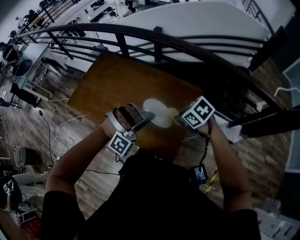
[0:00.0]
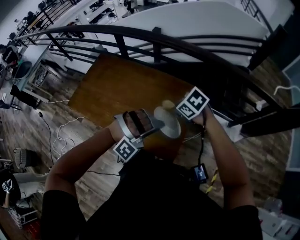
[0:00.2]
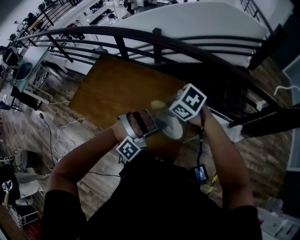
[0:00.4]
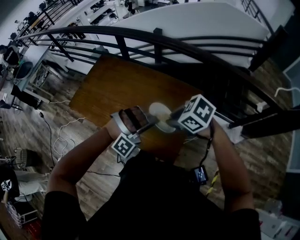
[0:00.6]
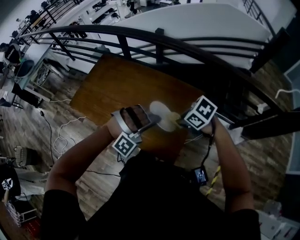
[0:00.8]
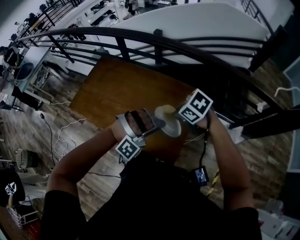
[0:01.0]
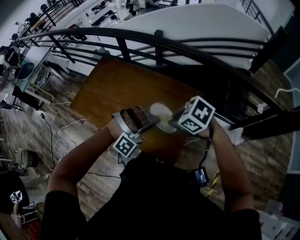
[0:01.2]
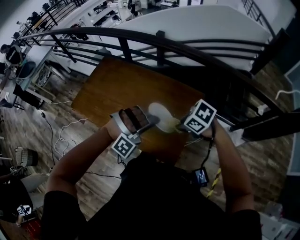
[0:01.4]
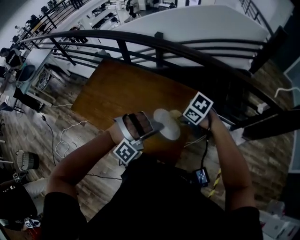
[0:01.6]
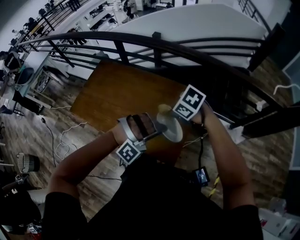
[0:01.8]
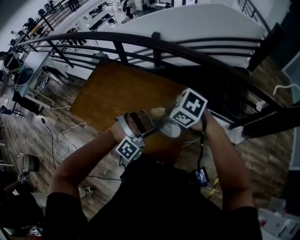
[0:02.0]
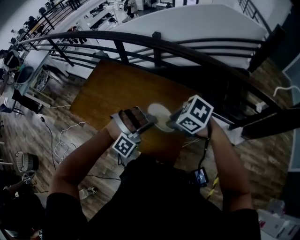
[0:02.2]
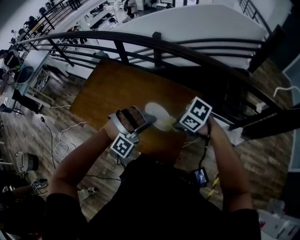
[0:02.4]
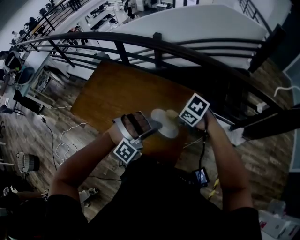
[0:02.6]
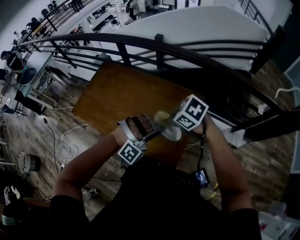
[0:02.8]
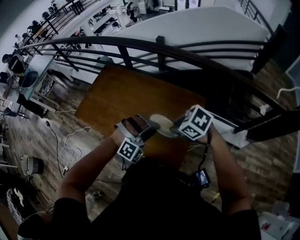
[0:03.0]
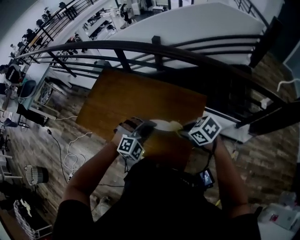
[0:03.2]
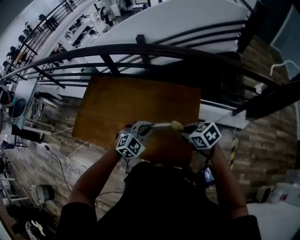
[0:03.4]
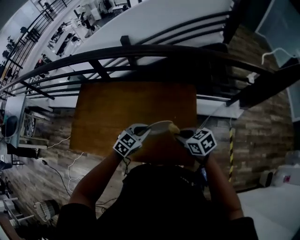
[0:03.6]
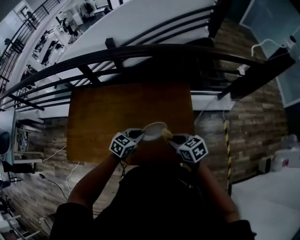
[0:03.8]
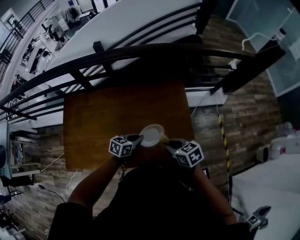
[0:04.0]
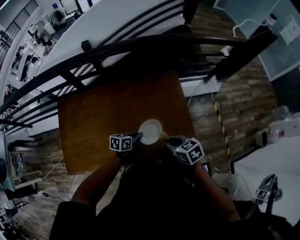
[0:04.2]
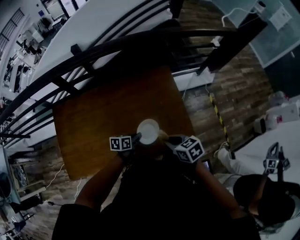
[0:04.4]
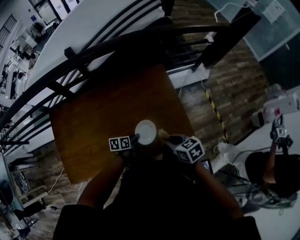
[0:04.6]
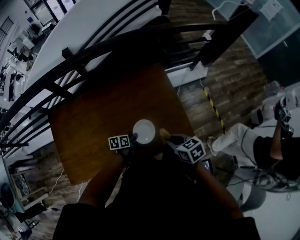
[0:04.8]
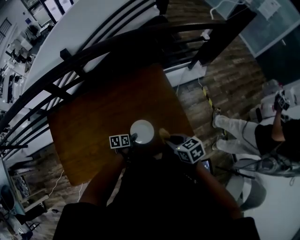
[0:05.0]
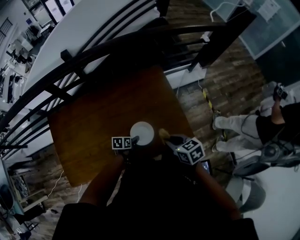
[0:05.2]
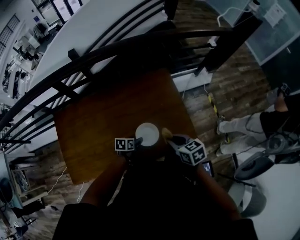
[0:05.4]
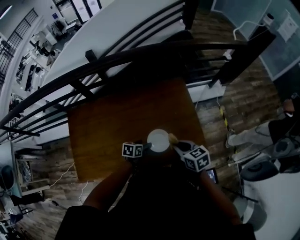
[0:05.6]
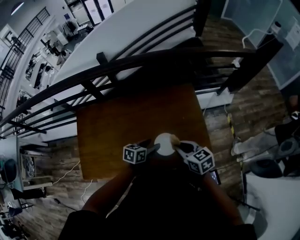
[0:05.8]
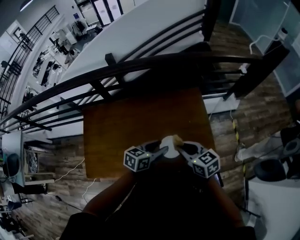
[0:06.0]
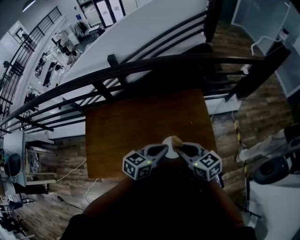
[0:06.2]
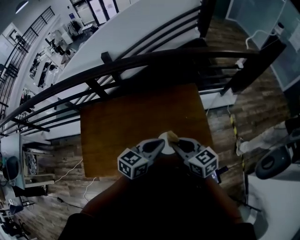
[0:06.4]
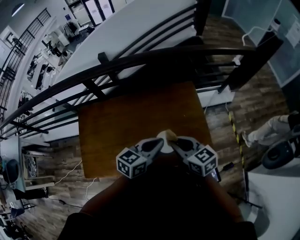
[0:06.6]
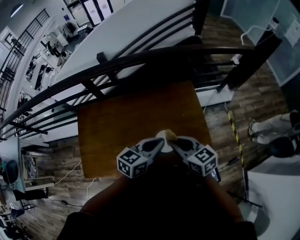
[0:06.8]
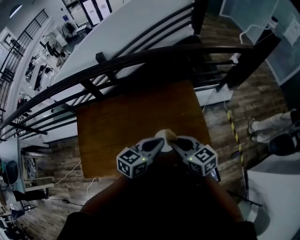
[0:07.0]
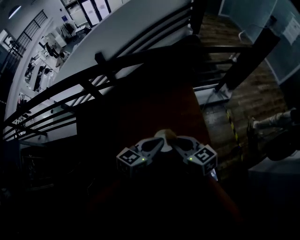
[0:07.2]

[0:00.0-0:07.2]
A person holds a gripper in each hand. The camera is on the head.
0:00.0 to 0:01.4: The right gripper moves up and down over roughly 5 cm, changing direction 3 times.
0:01.4 to 0:02.8: The right gripper goes up and down, approximately 10 cm each way, reversing 2 times.
0:02.8 to 0:04.4: The left gripper shifts some 25 cm downward, and rolls counterclockwise, seen from behind, by some 120 degrees. The right gripper shifts by approximately 15 cm, and rotates around the line of its fingers by some 60 degrees, clockwise from behind.
0:04.4 to 0:05.8: The left gripper goes some 10 cm upward, and opens its fingers. Meanwhile the right gripper travels to the left and upward by approximately 10 cm.
0:05.8 to 0:07.2: The left gripper is displaced upward by roughly 20 cm, changes its angle by some 20 degrees, and closes its fingers. Meanwhile the right gripper is displaced upward by some 10 cm.

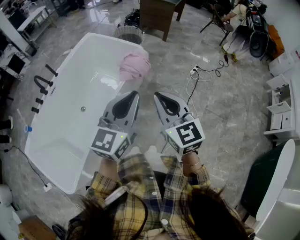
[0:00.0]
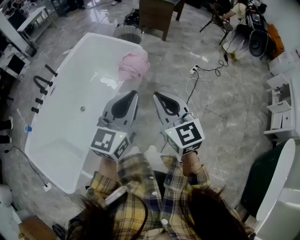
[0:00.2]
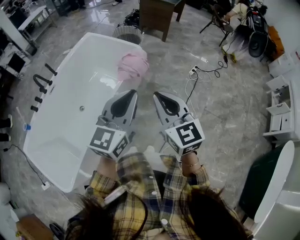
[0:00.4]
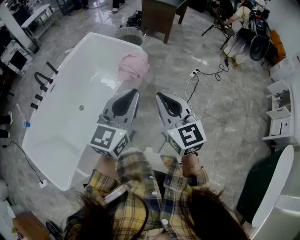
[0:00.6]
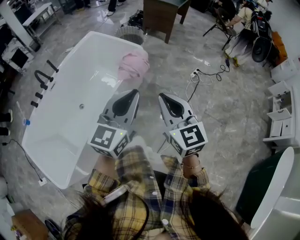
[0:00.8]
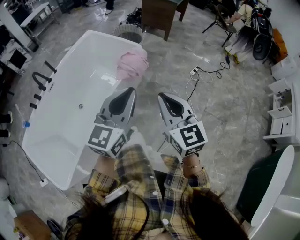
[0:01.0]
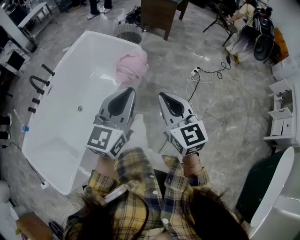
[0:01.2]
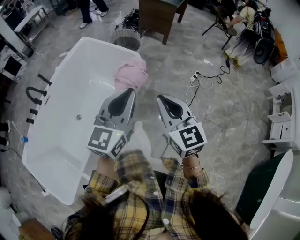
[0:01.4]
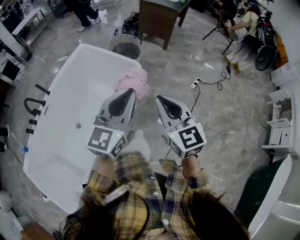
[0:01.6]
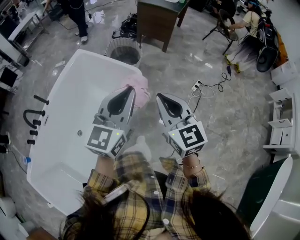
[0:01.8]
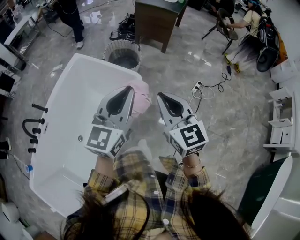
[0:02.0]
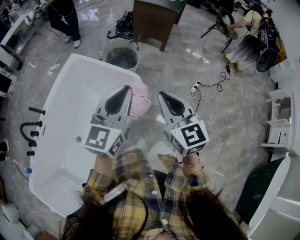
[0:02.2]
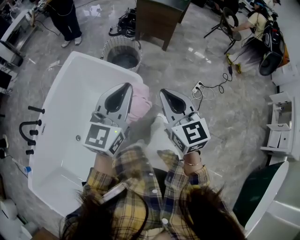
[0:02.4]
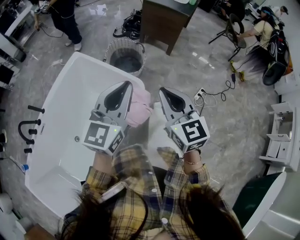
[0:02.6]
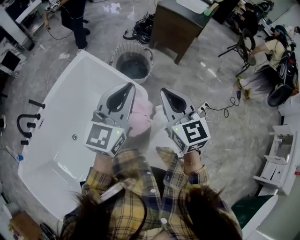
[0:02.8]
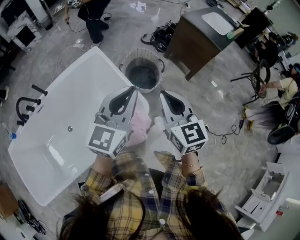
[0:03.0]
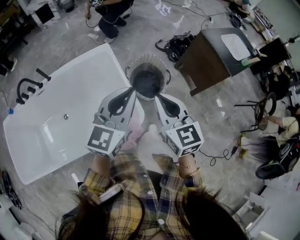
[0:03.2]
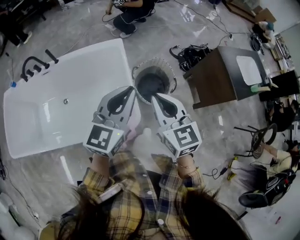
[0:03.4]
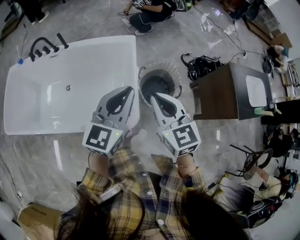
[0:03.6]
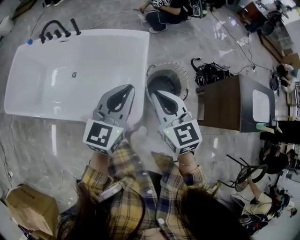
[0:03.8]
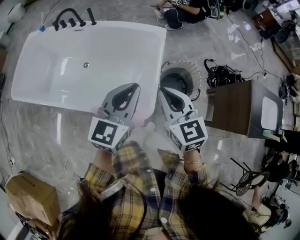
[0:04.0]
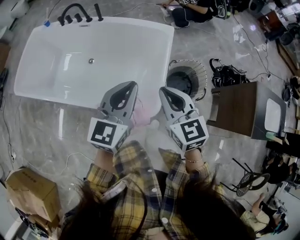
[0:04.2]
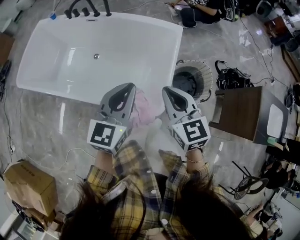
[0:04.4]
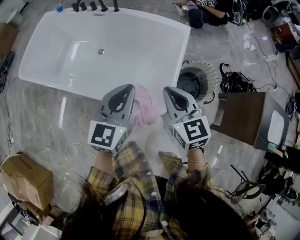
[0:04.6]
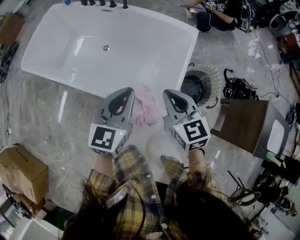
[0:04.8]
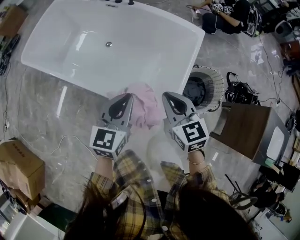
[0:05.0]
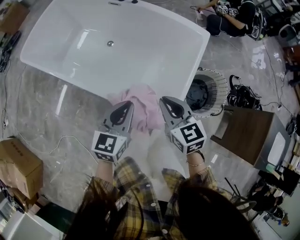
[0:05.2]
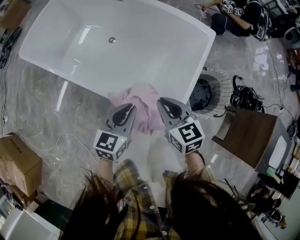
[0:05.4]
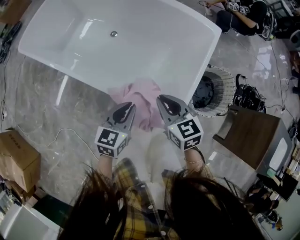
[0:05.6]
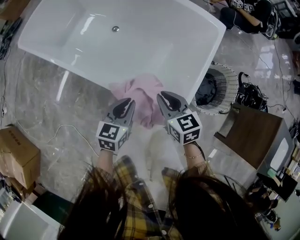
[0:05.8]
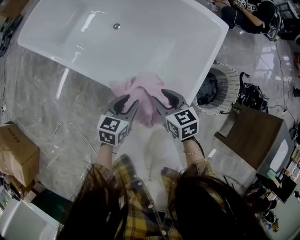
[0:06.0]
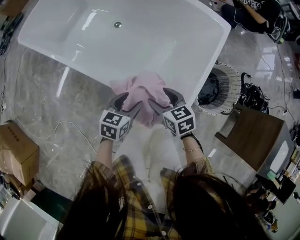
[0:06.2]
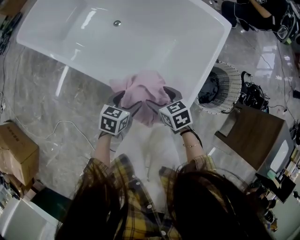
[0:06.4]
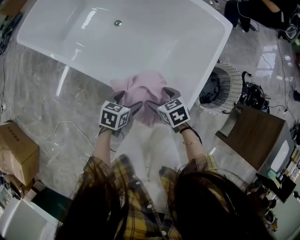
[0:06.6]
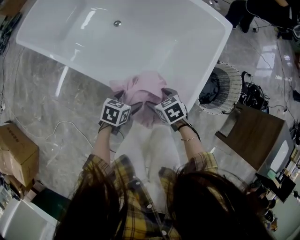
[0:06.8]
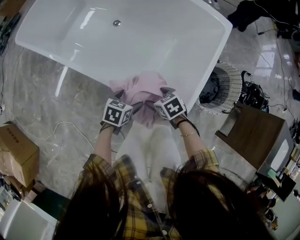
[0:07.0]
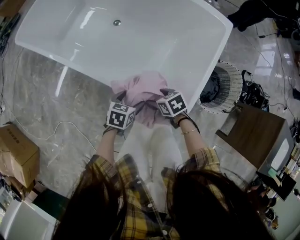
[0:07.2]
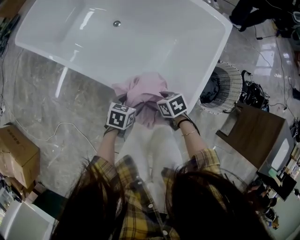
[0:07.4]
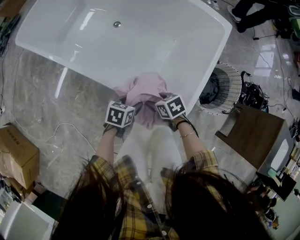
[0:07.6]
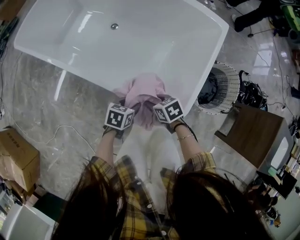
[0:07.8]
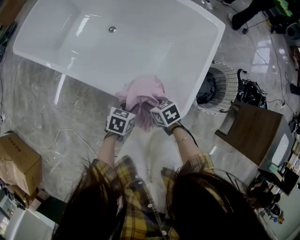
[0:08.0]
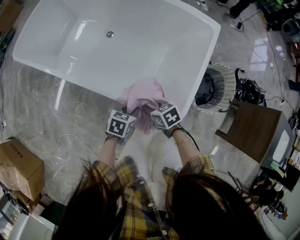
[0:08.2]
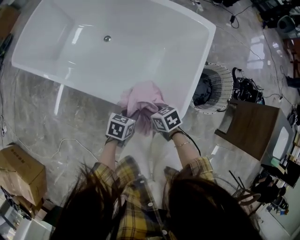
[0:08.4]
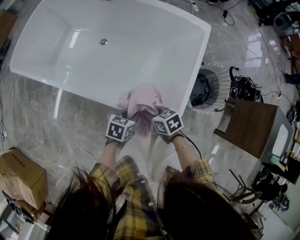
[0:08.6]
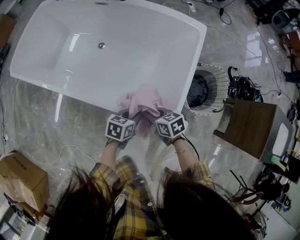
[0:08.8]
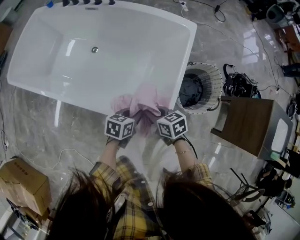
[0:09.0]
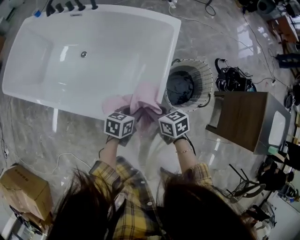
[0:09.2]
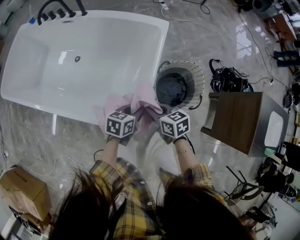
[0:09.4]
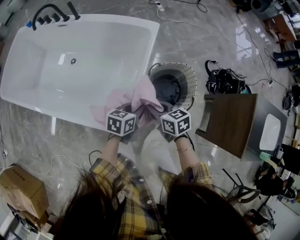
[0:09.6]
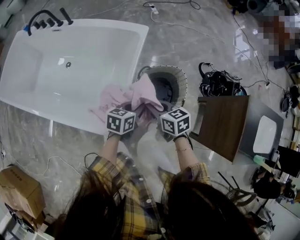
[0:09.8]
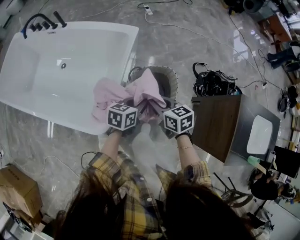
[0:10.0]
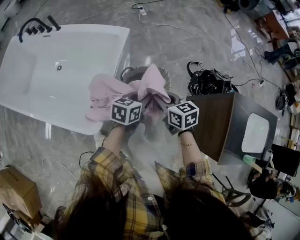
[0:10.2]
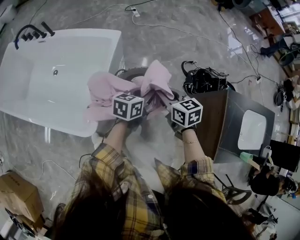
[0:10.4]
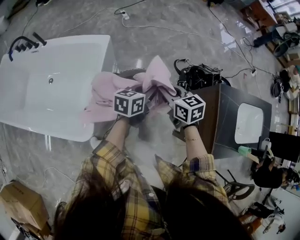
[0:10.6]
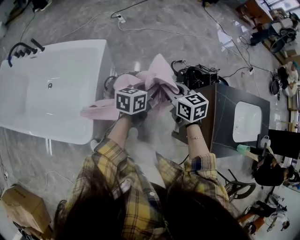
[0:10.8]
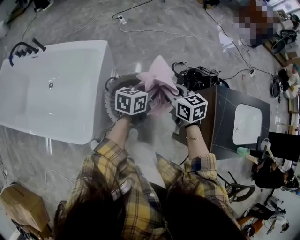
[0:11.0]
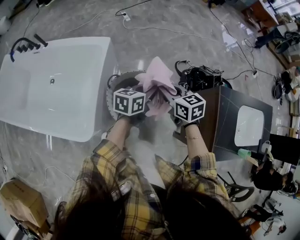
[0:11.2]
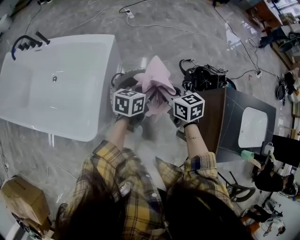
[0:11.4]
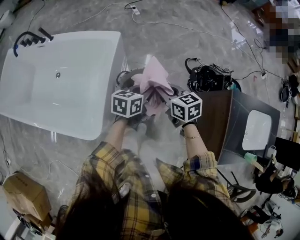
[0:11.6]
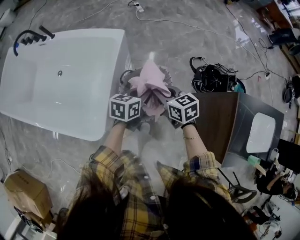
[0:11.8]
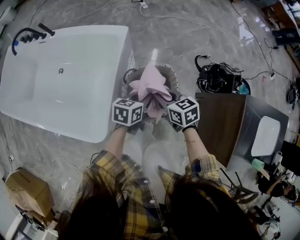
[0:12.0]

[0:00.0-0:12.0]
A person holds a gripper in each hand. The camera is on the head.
0:00.0 to 0:01.6: The two grippers go about 20 cm forward.
0:01.6 to 0:03.0: The two grippers go some 40 cm forward. The left gripper rotates approximately 20 degrees.
0:03.0 to 0:04.4: The left gripper moves some 10 cm, and changes its angle by roughly 60 degrees, while the right gripper changes place by roughly 15 cm, and turns by about 60 degrees.
0:04.4 to 0:06.0: Both grippers move downward, some 30 cm. The right gripper changes its angle by roughly 30 degrees, and opens its fingers. Meanwhile the left gripper rotates approximately 30 degrees.
0:06.0 to 0:07.6: The grippers both shift downward by roughly 10 cm. The right gripper rotates some 30 degrees, and opens and closes again. Meanwhile the left gripper rotates roughly 20 degrees, and opens its fingers.
0:07.6 to 0:09.0: The right gripper travels upward by roughly 10 cm, turns by roughly 20 degrees, and closes up; the left gripper ends up approximately 15 cm from where it was, and closes.
0:09.0 to 0:10.4: The pair of grippers is taken to the right, roughly 50 cm. The right gripper turns by approximately 20 degrees.
0:10.4 to 0:12.0: The two grippers go approximately 10 cm downward and to the left.

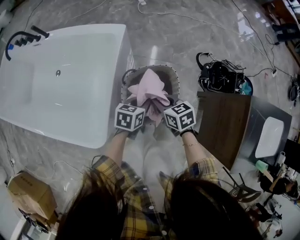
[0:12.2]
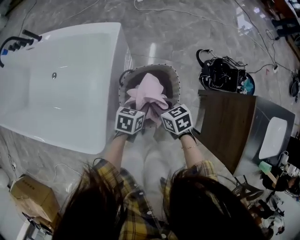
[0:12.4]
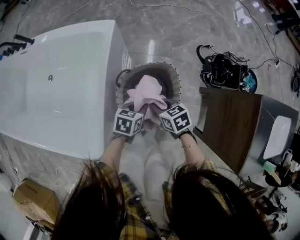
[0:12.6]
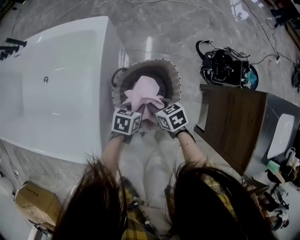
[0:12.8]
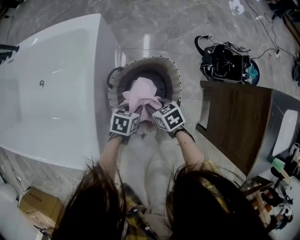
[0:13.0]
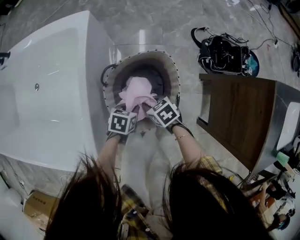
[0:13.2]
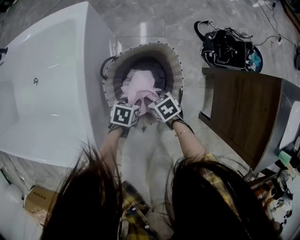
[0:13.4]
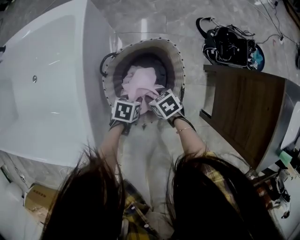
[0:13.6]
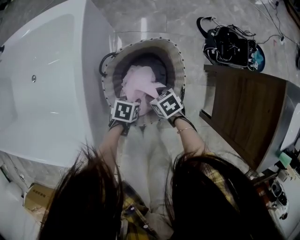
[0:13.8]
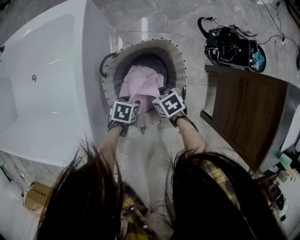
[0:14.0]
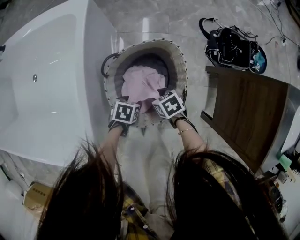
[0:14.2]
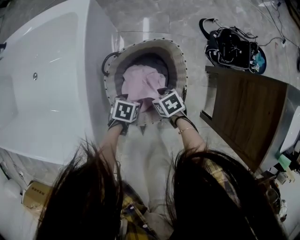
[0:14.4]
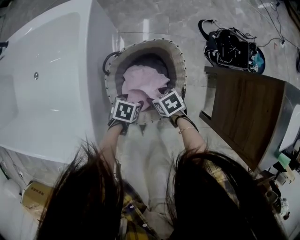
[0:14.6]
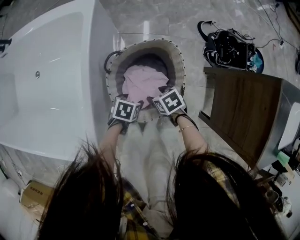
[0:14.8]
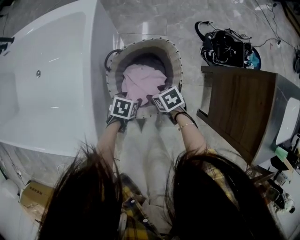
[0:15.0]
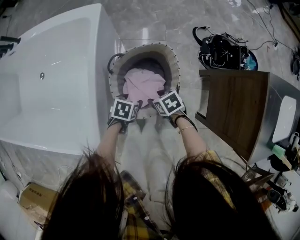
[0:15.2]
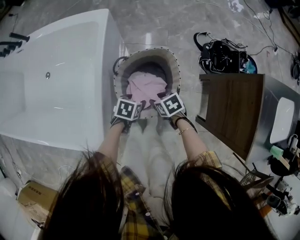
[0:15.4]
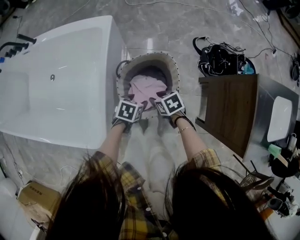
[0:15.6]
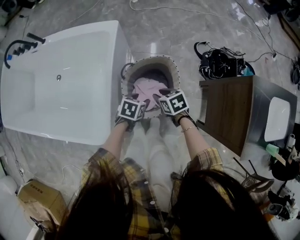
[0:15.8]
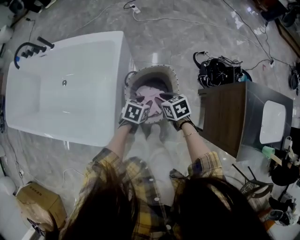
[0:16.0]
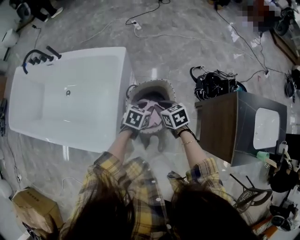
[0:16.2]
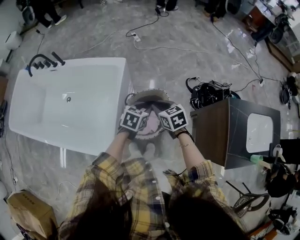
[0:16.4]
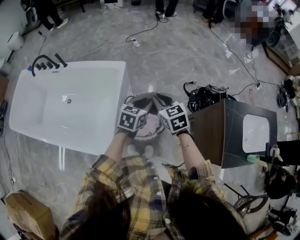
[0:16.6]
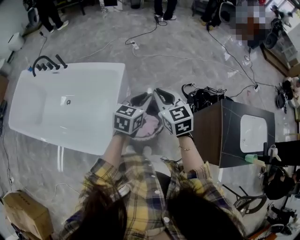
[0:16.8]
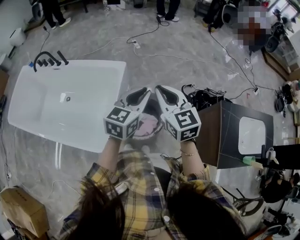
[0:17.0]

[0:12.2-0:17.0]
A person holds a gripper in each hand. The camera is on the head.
0:12.2 to 0:13.8: Both grippers travel together downward, about 25 cm. The right gripper swivels approximately 20 degrees. The left gripper rotates some 30 degrees.
0:13.8 to 0:15.4: The two grippers go approximately 10 cm upward. The left gripper opens.
0:15.4 to 0:17.0: Both grippers move upward, approximately 50 cm. The left gripper tilts its fingers some 50 degrees upward, and closes up. Meanwhile the right gripper angles its fingers upward, by some 50 degrees, and closes up.
